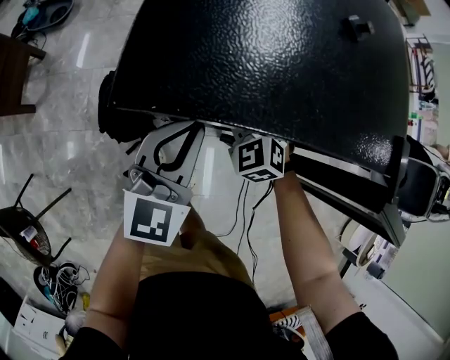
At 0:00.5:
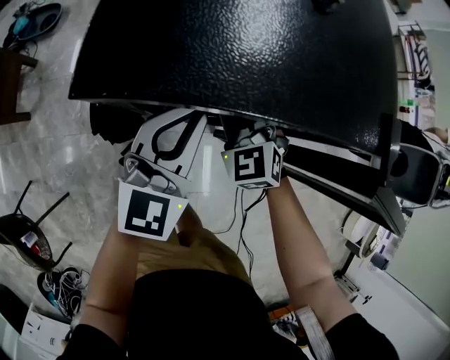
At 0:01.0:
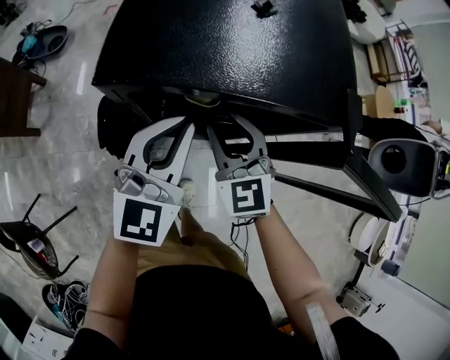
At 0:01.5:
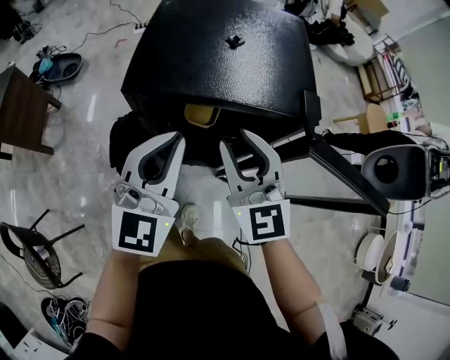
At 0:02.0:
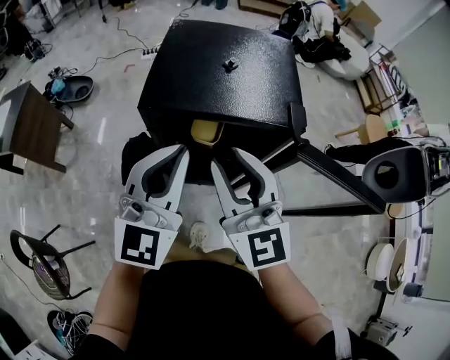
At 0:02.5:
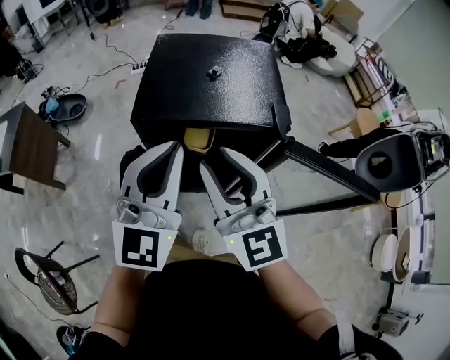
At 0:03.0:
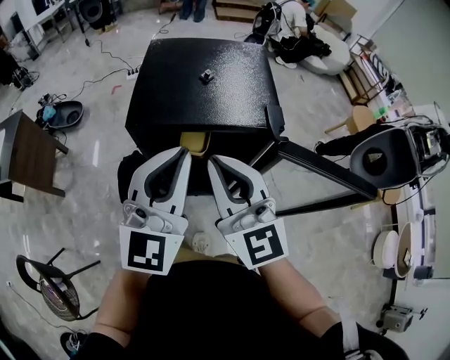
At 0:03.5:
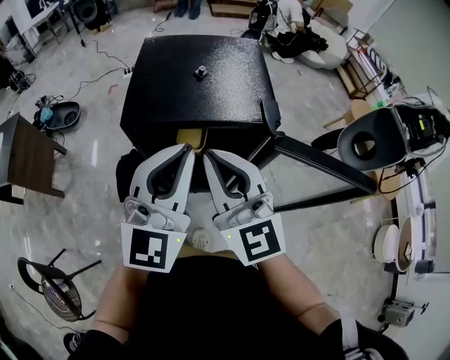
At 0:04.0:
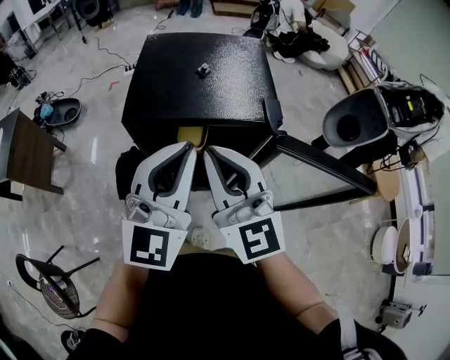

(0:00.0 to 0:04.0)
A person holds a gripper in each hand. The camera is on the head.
0:00.0 - 0:02.0: The right gripper heads upward and backward, covering approximately 40 cm, and tips its fingers upward by some 50 degrees. Meanwhile the left gripper shifts some 25 cm upward and backward.
0:02.0 - 0:04.0: The right gripper closes up, while the left gripper shifts roughly 5 cm to the right.

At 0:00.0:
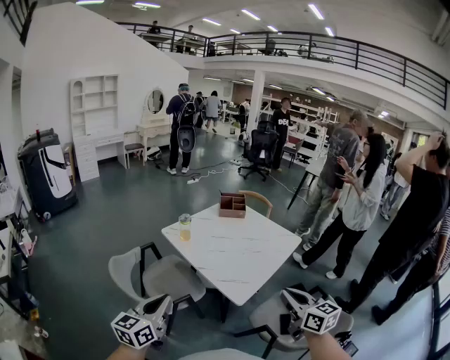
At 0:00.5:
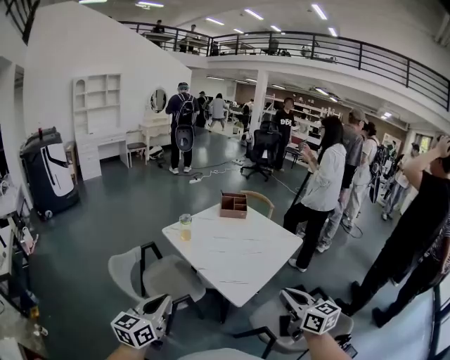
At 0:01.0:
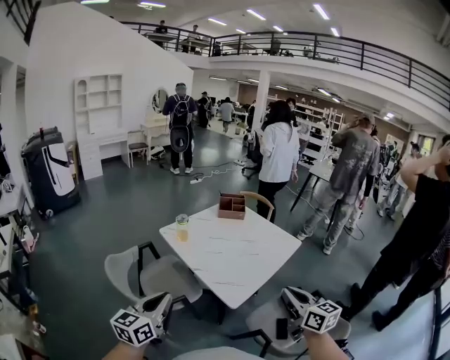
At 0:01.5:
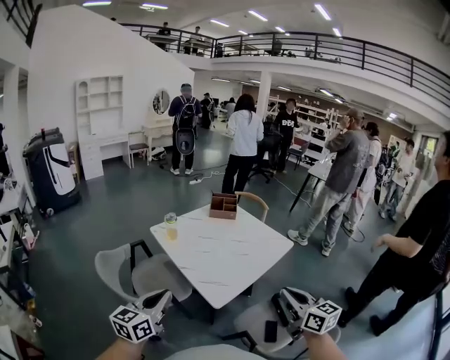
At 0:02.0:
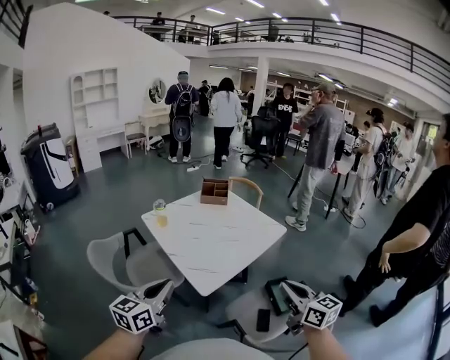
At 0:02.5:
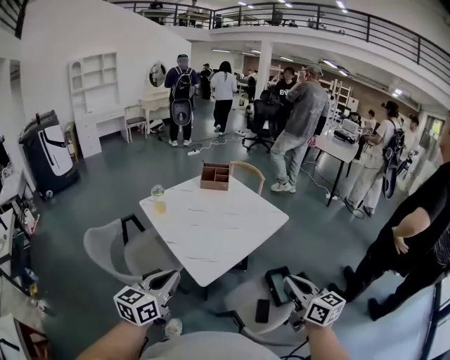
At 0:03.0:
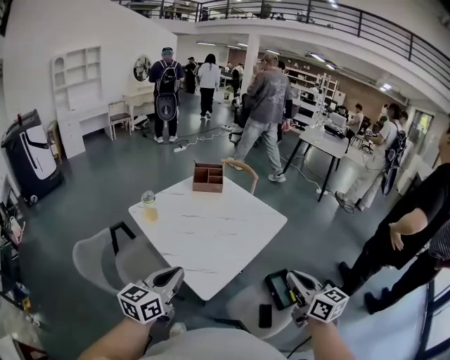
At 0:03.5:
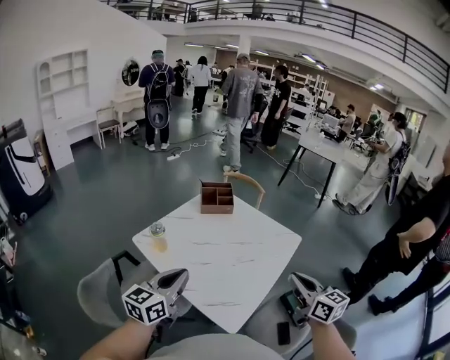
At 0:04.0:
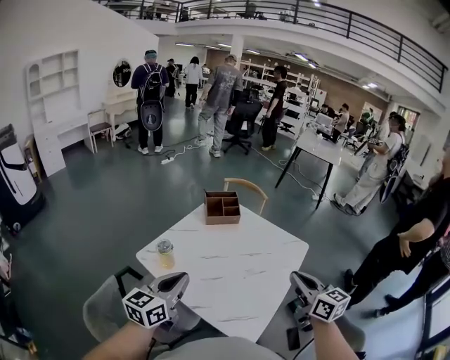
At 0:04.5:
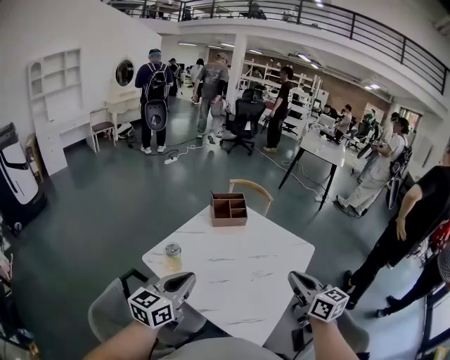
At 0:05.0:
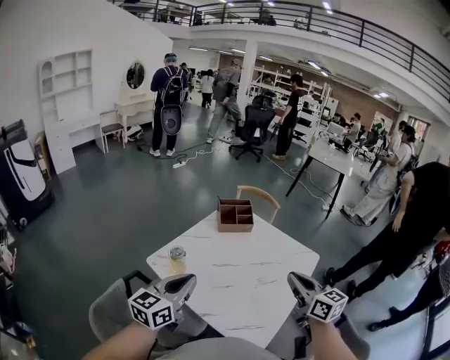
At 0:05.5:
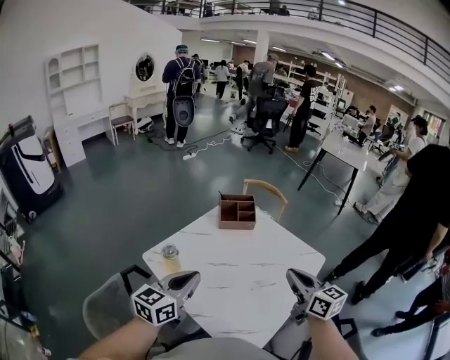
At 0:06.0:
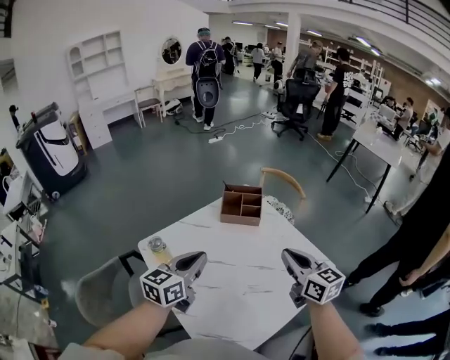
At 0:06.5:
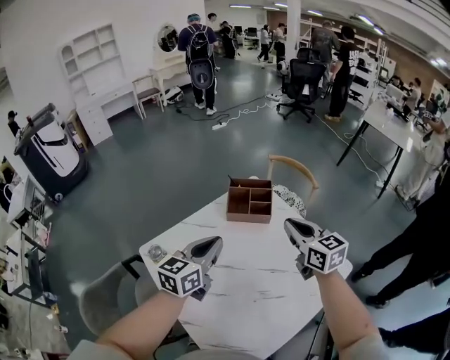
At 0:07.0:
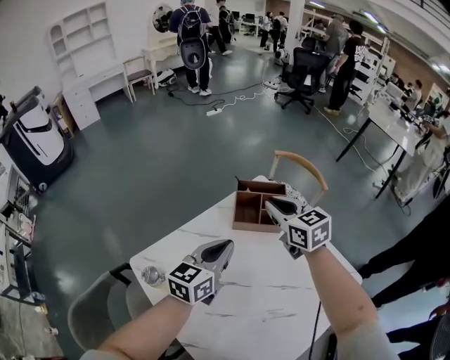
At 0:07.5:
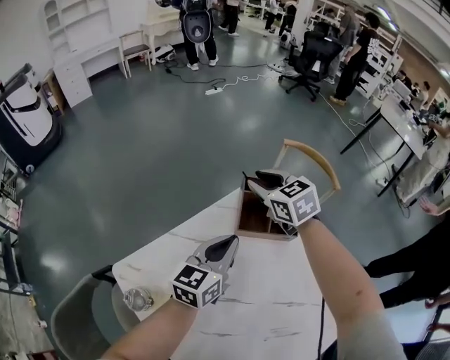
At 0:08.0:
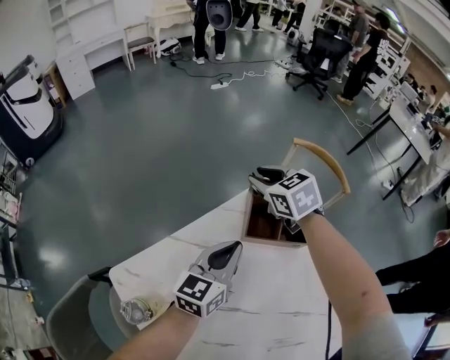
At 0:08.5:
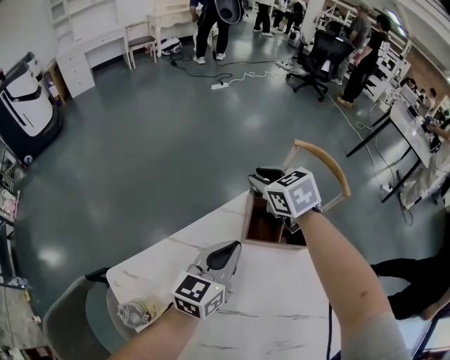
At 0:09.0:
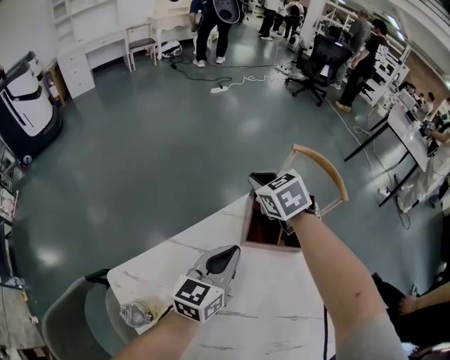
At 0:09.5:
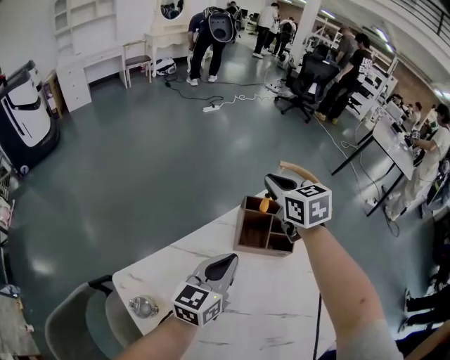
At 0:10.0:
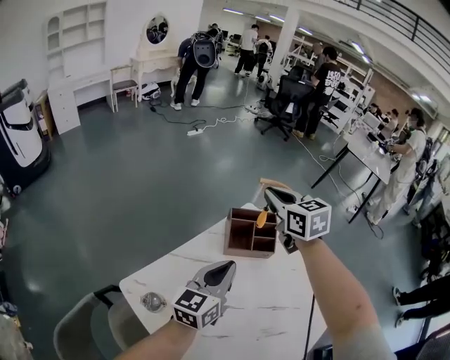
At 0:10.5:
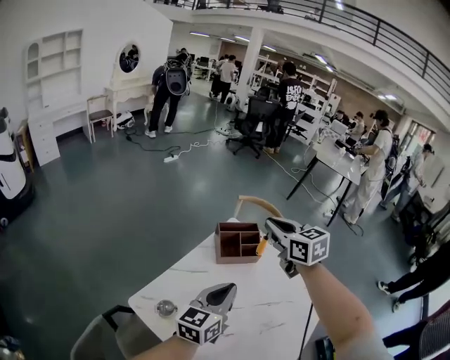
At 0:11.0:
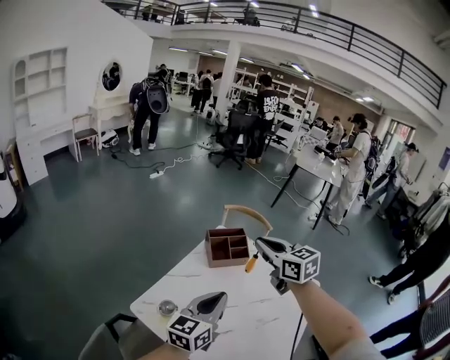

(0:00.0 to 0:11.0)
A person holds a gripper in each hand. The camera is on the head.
0:00.0 - 0:02.0: Both grippers travel together to the right, some 20 cm.
0:02.0 - 0:03.5: The right gripper shifts approximately 20 cm forward and to the left. Meanwhile the left gripper shifts about 25 cm forward.
0:03.5 - 0:05.5: The right gripper shifts some 15 cm forward and to the left, while the left gripper shifts some 10 cm forward.
0:05.5 - 0:07.5: The left gripper goes about 35 cm forward and downward; the right gripper shifts some 50 cm forward, changes its angle by some 40 degrees, and opens.
0:07.5 - 0:09.0: The right gripper changes place by some 5 cm.
0:09.0 - 0:11.0: The right gripper travels upward, backward and to the right by some 40 cm, and changes its angle by approximately 40 degrees. Meanwhile the left gripper goes approximately 30 cm backward and upward, and rotates approximately 20 degrees.

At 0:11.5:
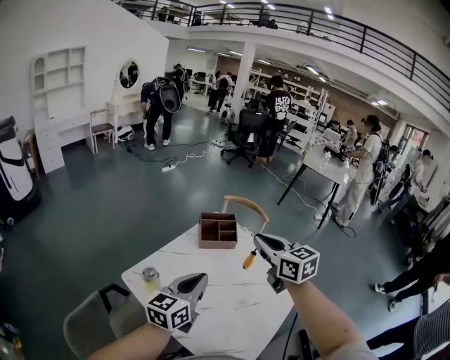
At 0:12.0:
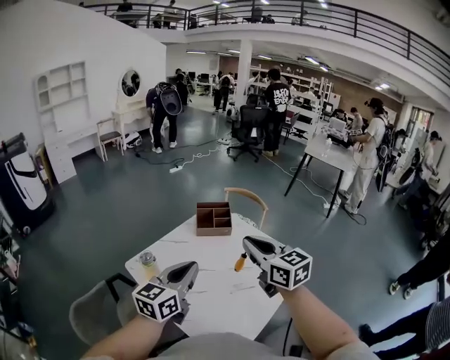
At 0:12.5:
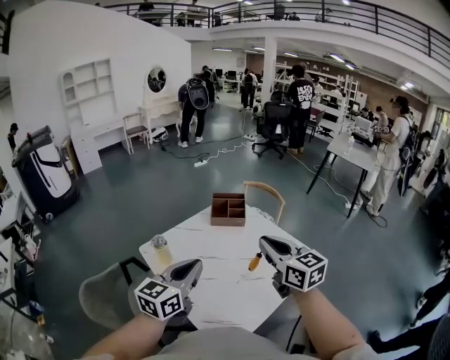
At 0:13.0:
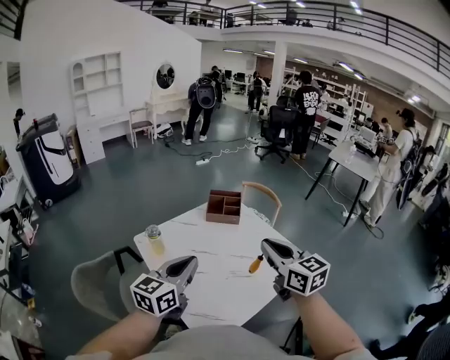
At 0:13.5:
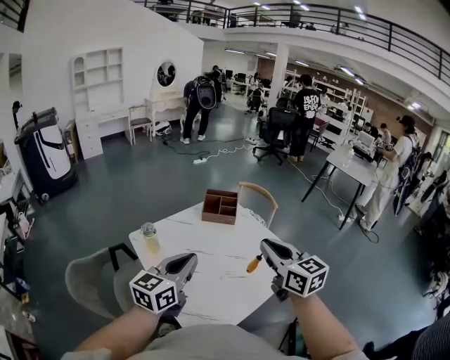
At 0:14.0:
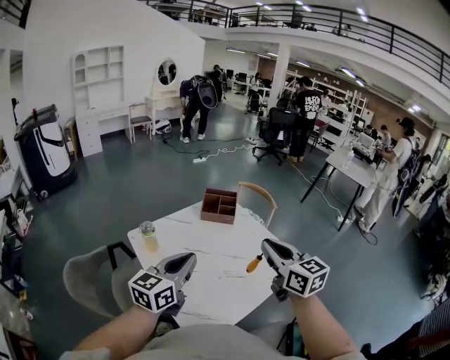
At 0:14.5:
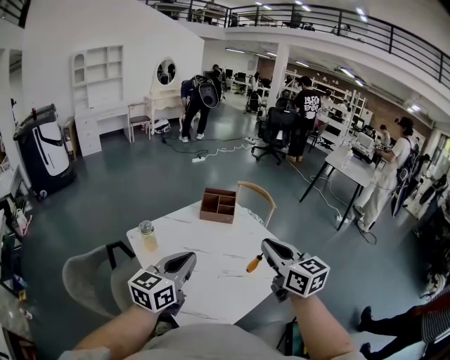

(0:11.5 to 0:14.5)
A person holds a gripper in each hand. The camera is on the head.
0:11.5 - 0:13.0: Both grippers travel together backward and to the right, roughly 15 cm.
0:13.0 - 0:14.5: The grippers stay close to where they were, moving slightly.

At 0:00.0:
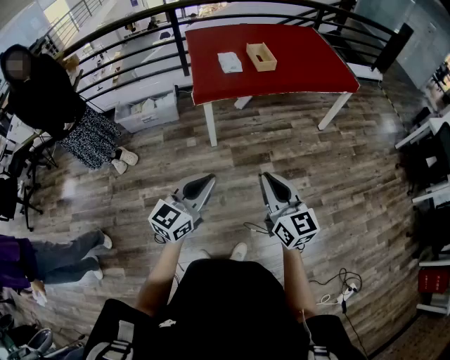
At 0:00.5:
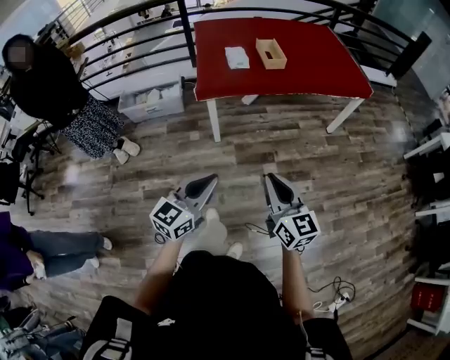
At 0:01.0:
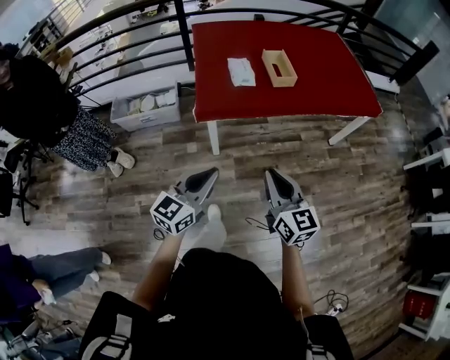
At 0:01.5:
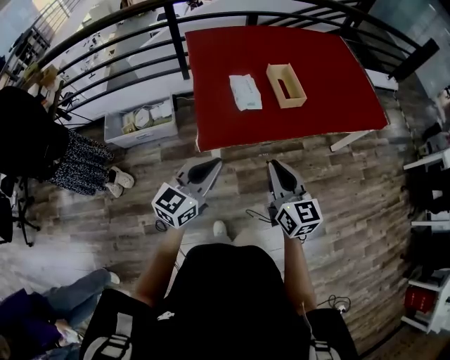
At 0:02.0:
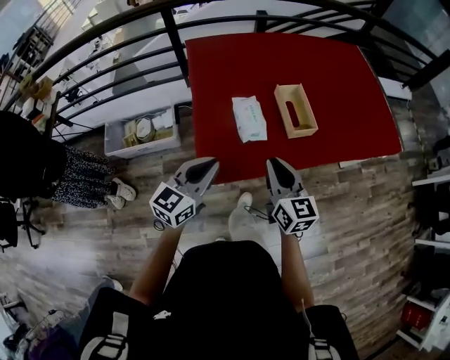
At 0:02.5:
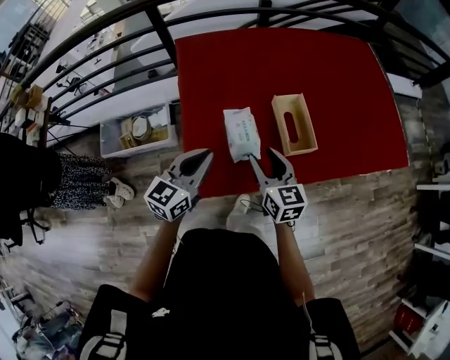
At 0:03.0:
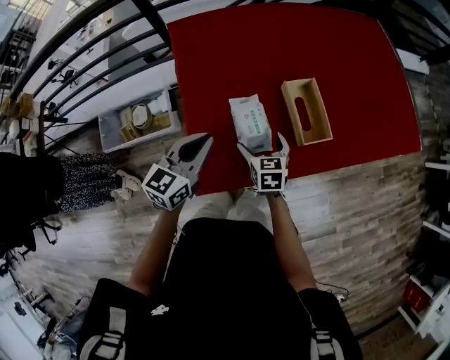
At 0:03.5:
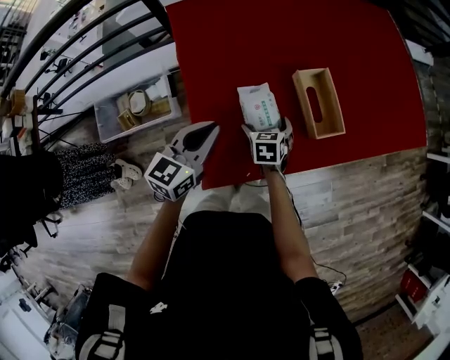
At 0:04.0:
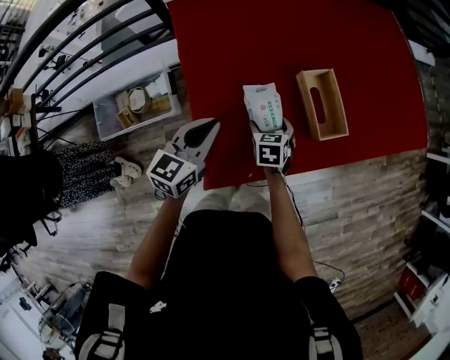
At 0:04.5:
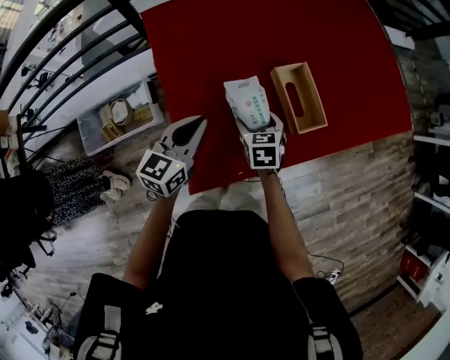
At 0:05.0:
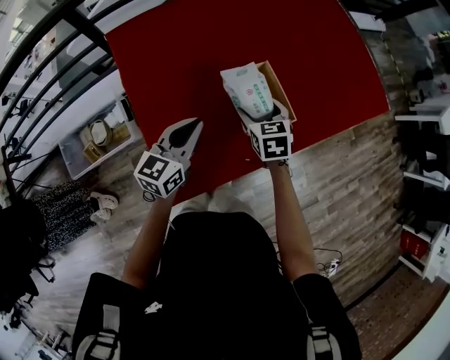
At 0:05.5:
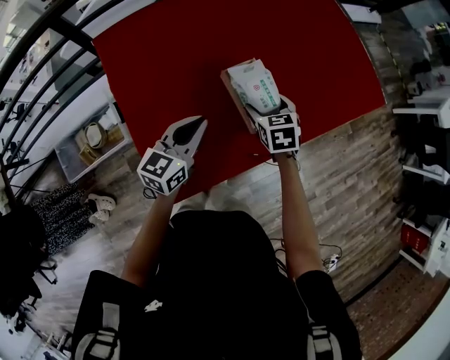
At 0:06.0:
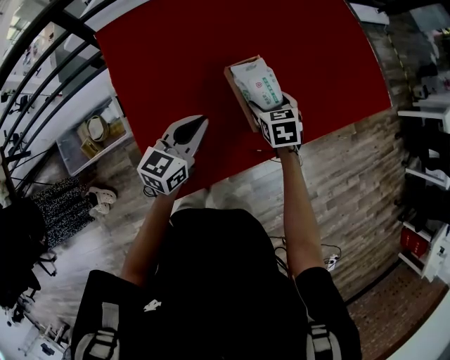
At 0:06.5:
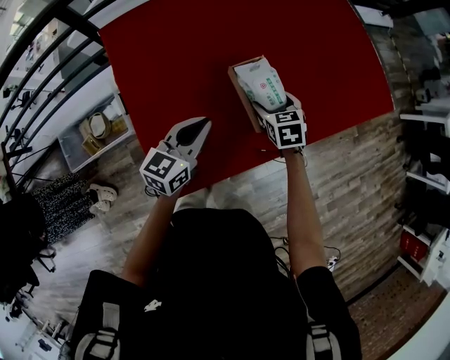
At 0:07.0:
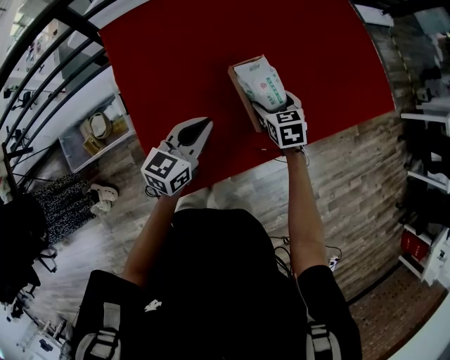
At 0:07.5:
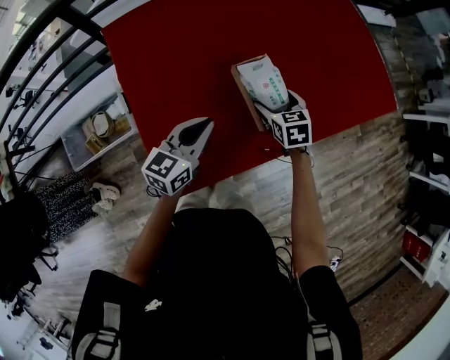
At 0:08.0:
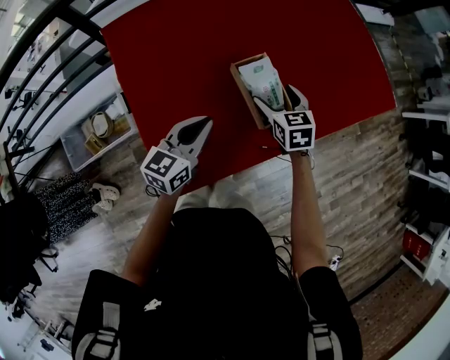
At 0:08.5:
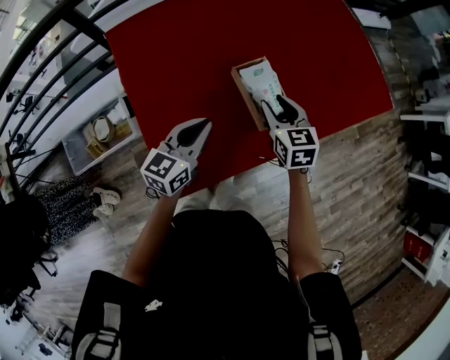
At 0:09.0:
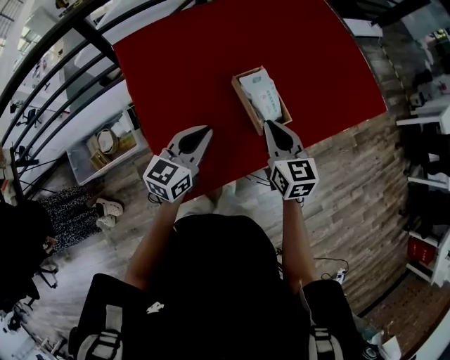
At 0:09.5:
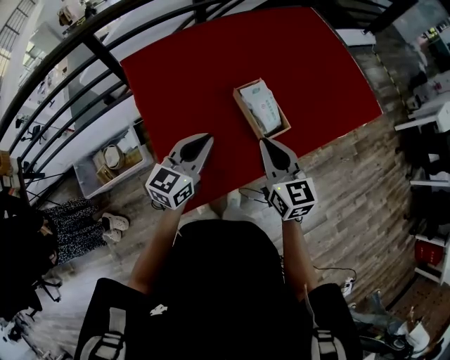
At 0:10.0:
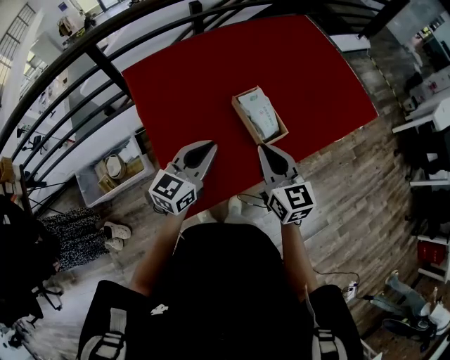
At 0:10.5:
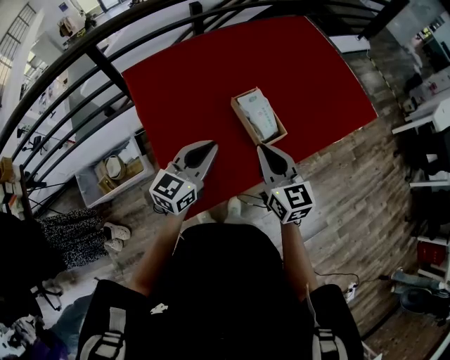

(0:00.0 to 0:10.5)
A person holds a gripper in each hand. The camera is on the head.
0:00.0 - 0:02.0: Both grippers are carried forward, about 60 cm.
0:02.0 - 0:04.0: The left gripper shifts some 20 cm forward. Meanwhile the right gripper goes approximately 35 cm downward and forward, tilts its fingers roughly 40 degrees downward, and opens.
0:04.0 - 0:06.5: The two grippers go some 20 cm to the right and forward.
0:06.5 - 0:08.5: The right gripper travels upward by about 10 cm, and closes its fingers.
0:08.5 - 0:10.5: The right gripper is displaced backward and upward by about 20 cm, and changes its angle by about 20 degrees; the left gripper travels upward and backward by about 10 cm.
